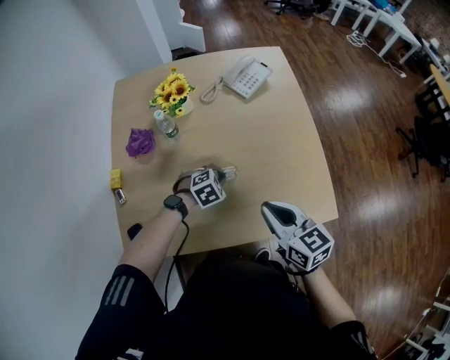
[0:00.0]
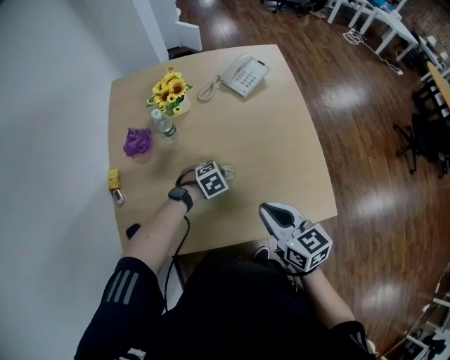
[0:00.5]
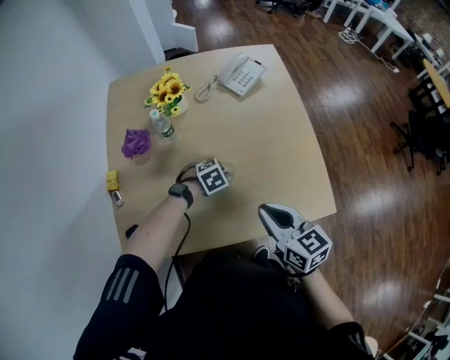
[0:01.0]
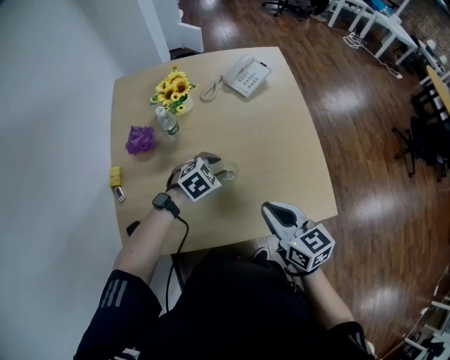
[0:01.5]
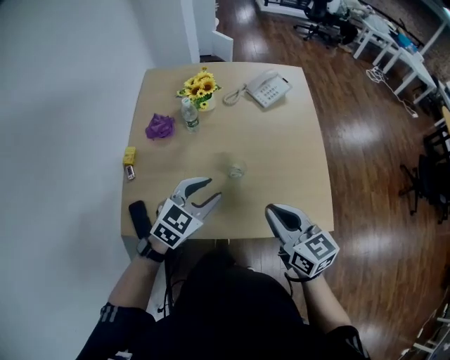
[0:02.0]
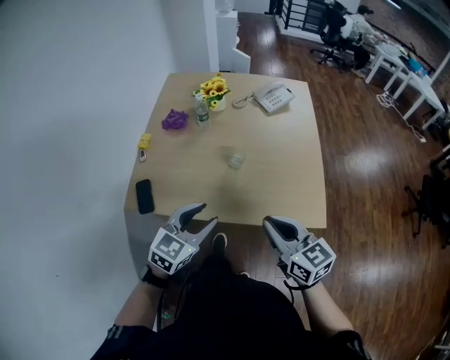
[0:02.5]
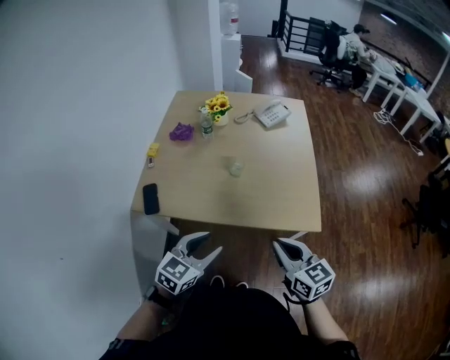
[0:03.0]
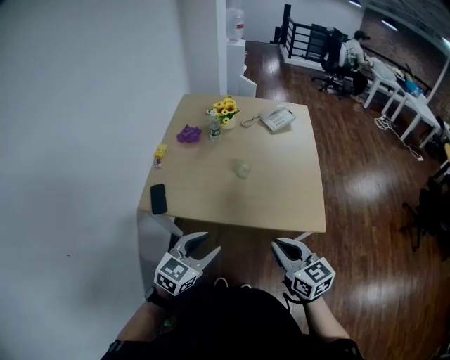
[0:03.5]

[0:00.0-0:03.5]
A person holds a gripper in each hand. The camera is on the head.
0.0 to 2.0 s: The right gripper ends up roughly 5 cm from where it was. The left gripper goes some 25 cm upward and backward, angles its fingers upward, by some 30 degrees, and opens its fingers.
2.0 to 3.5 s: The two grippers go some 30 cm backward.

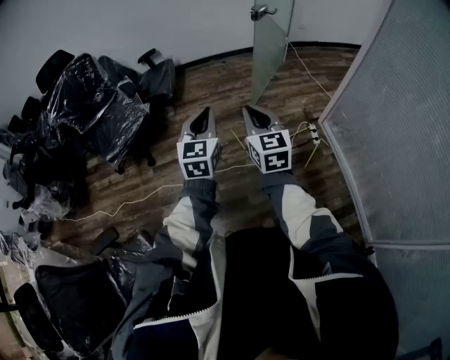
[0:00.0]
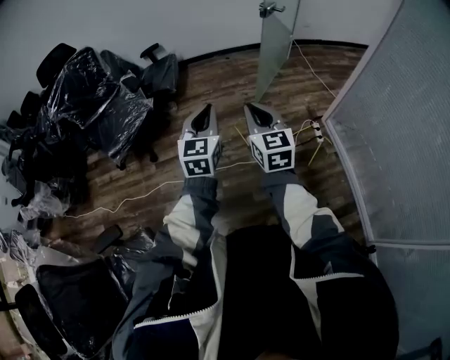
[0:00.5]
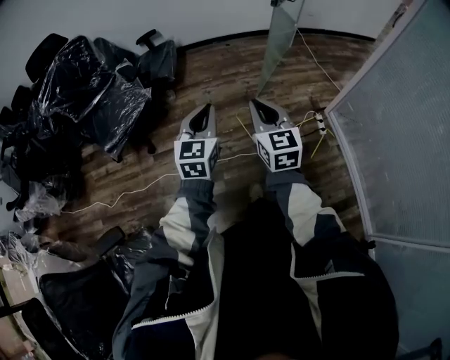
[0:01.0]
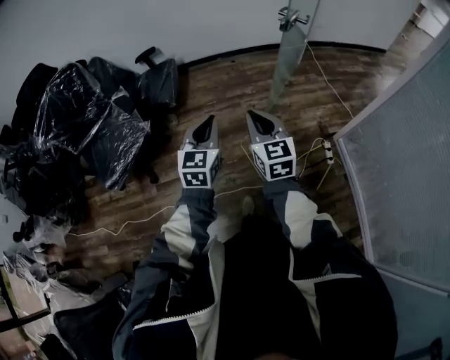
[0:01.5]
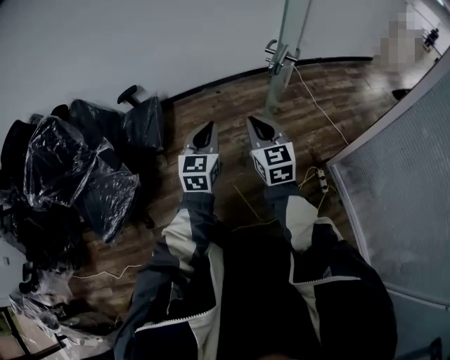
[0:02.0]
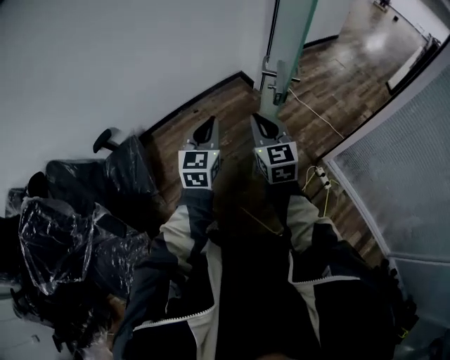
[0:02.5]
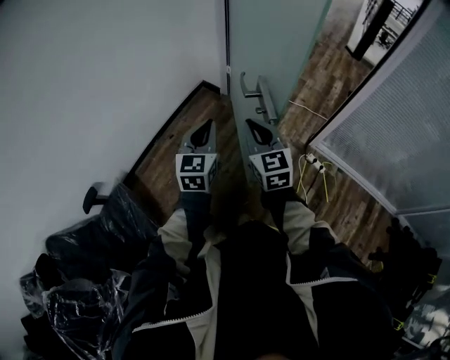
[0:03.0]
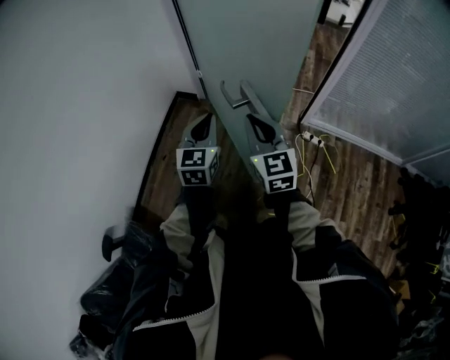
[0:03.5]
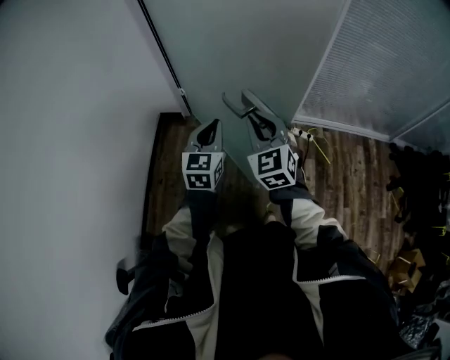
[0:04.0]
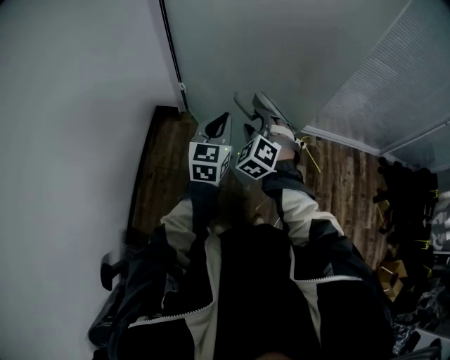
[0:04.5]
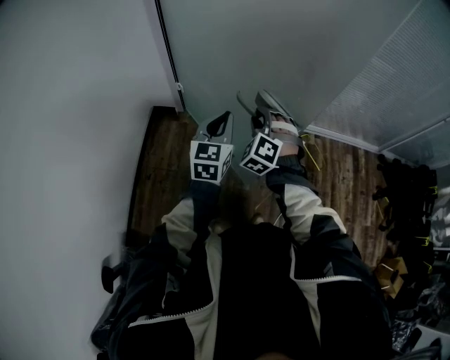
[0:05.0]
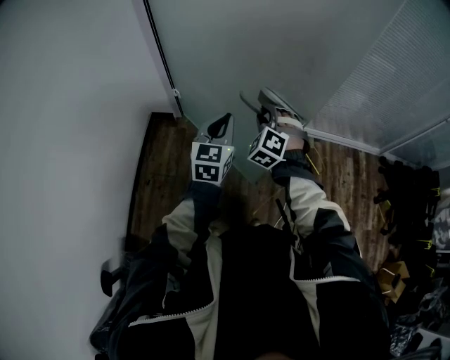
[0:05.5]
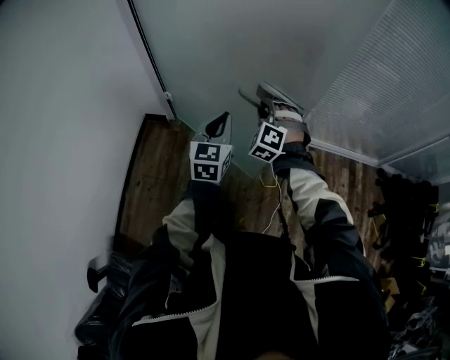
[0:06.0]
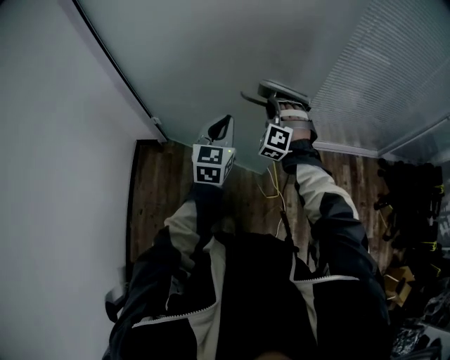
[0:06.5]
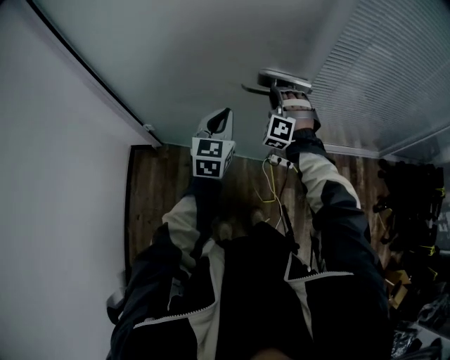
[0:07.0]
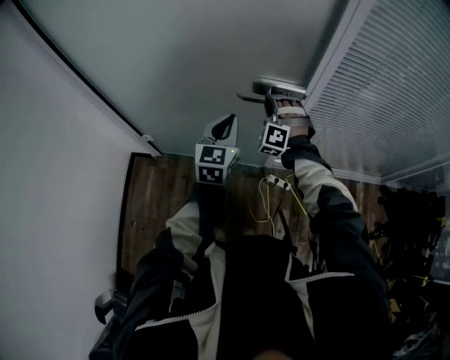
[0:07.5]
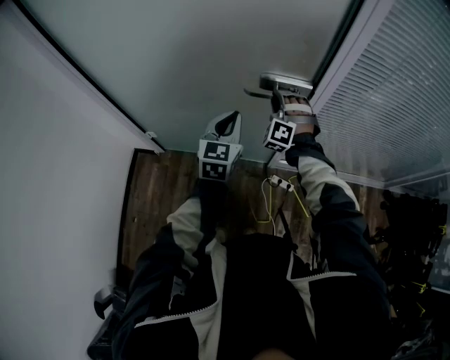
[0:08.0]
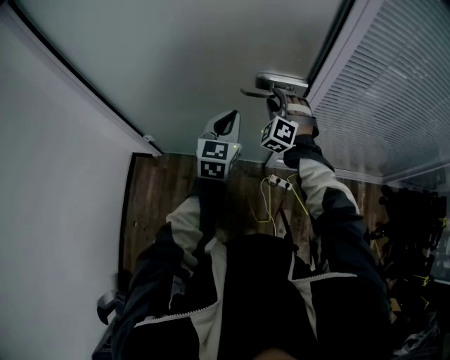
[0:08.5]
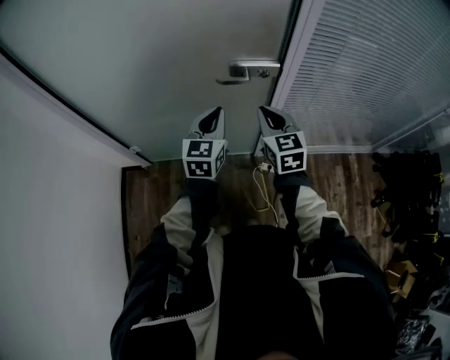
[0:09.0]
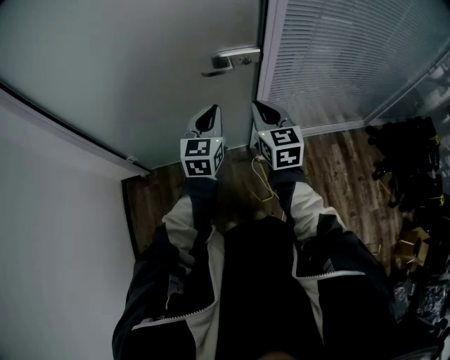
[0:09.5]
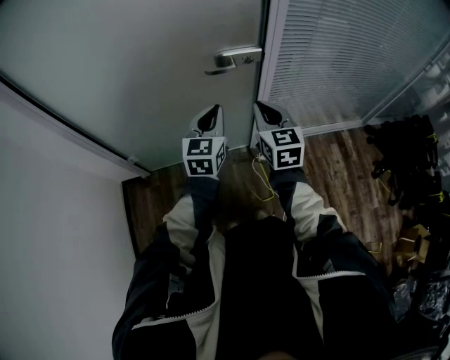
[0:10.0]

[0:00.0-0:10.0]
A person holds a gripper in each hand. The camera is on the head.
0.0 to 2.0 s: The pair of grippers is taken forward, approximately 50 cm.
2.0 to 4.0 s: The left gripper moves some 40 cm, and changes its angle by roughly 70 degrees. Meanwhile the right gripper ends up roughly 35 cm from where it was, and rotates roughly 70 degrees.
4.0 to 6.0 s: The grippers both shift forward and to the right by some 20 cm. The right gripper rolls counterclockwise, seen from behind, by about 40 degrees, and opens, then closes once more.
6.0 to 8.0 s: The two grippers go approximately 35 cm forward.
8.0 to 10.0 s: The right gripper heads backward and upward, covering some 25 cm, twists about 80 degrees clockwise, seen from behind, and closes, while the left gripper shifts about 10 cm backward.

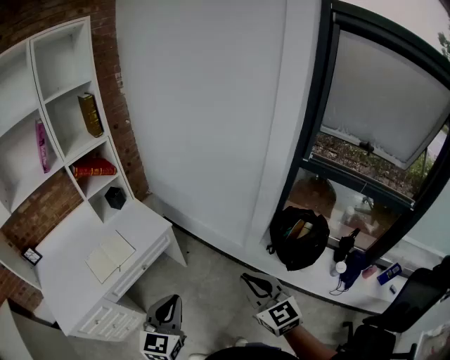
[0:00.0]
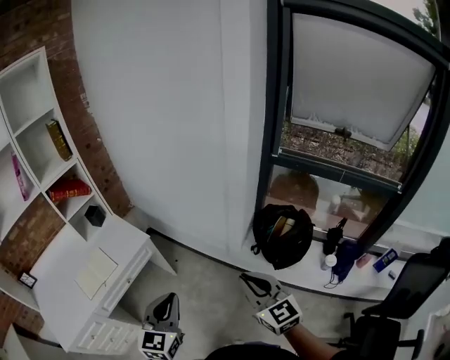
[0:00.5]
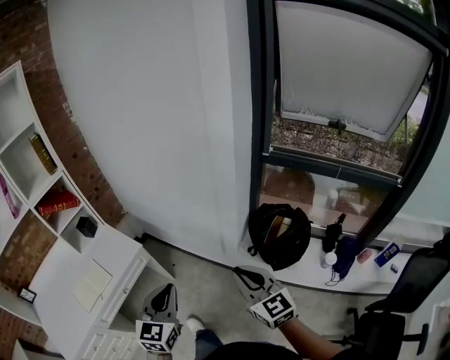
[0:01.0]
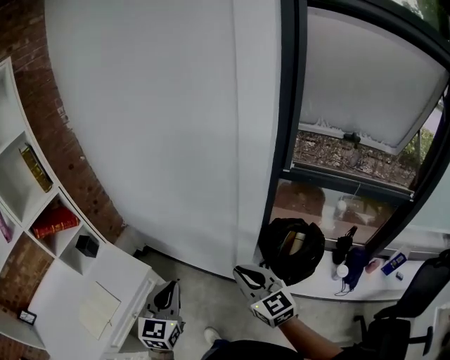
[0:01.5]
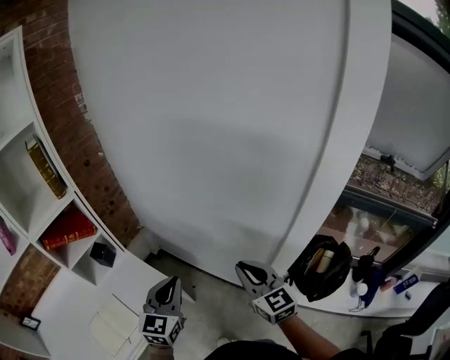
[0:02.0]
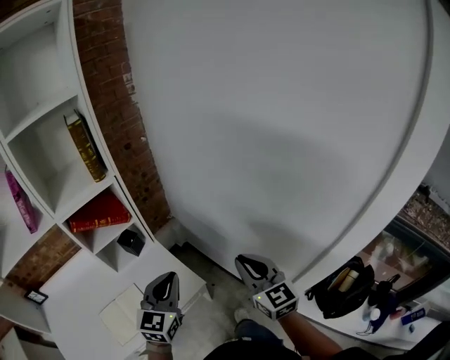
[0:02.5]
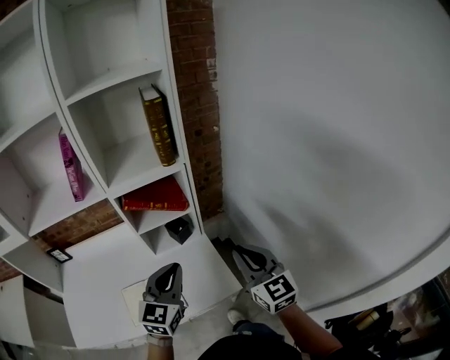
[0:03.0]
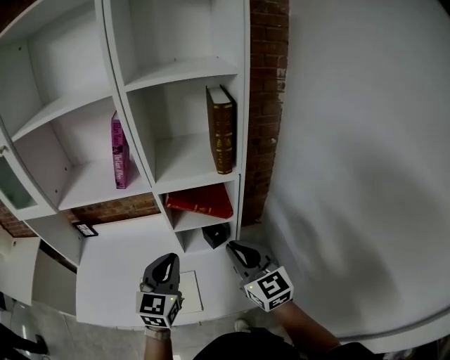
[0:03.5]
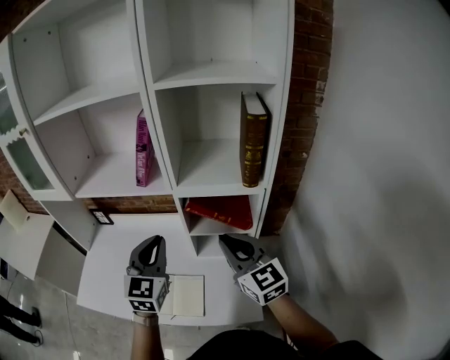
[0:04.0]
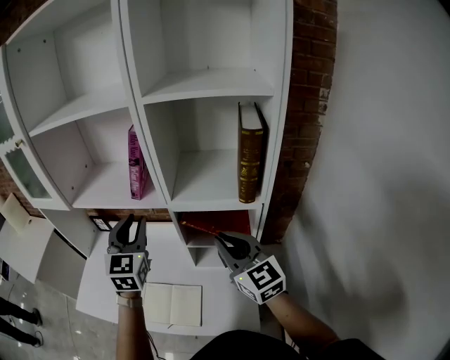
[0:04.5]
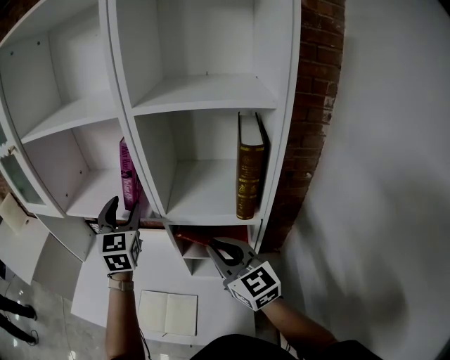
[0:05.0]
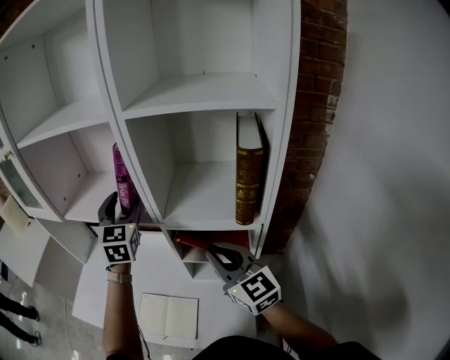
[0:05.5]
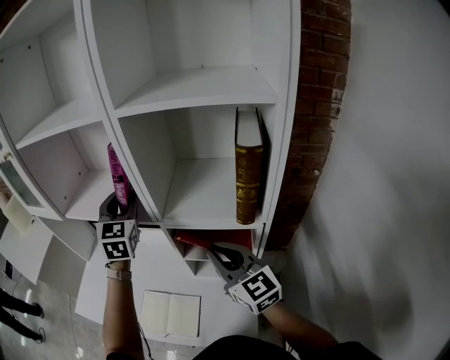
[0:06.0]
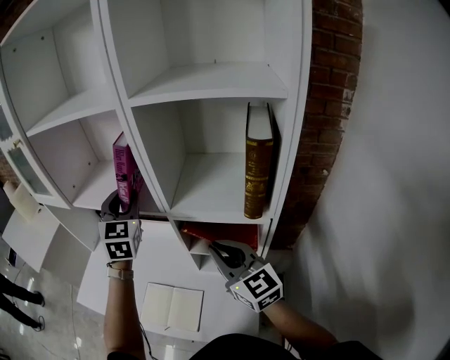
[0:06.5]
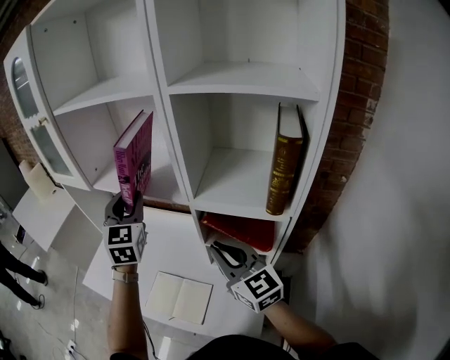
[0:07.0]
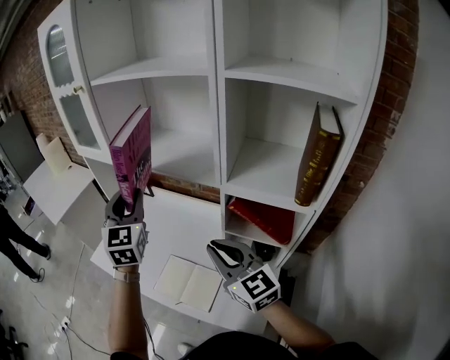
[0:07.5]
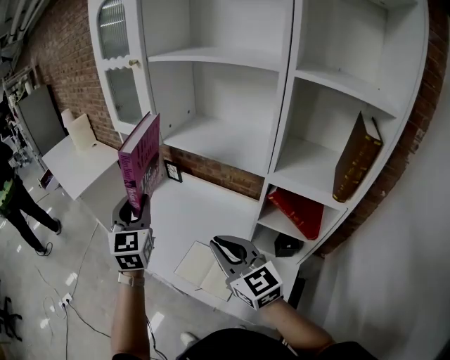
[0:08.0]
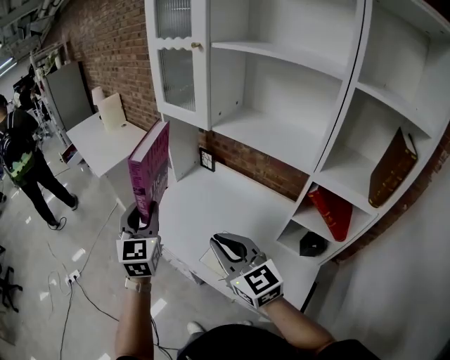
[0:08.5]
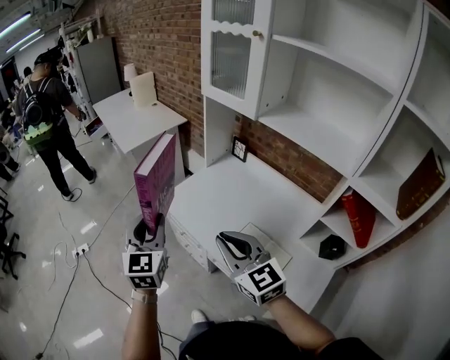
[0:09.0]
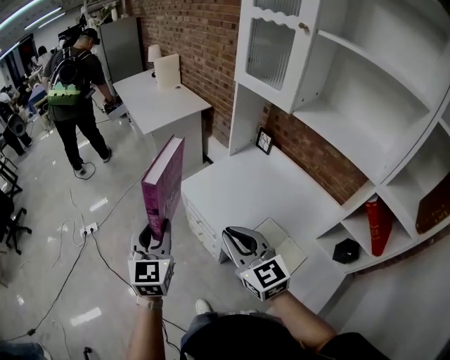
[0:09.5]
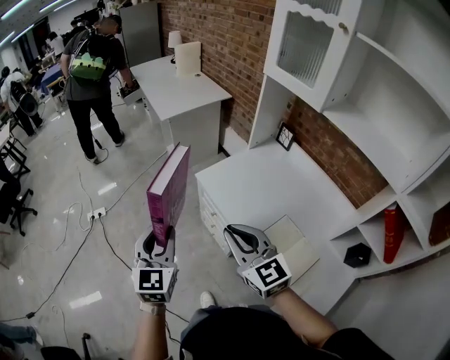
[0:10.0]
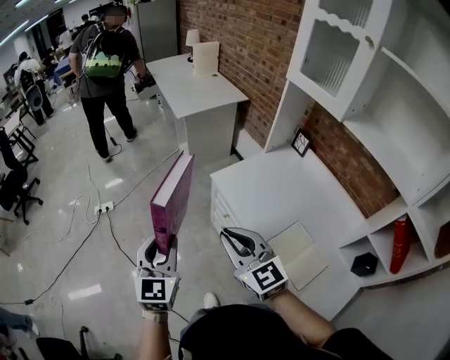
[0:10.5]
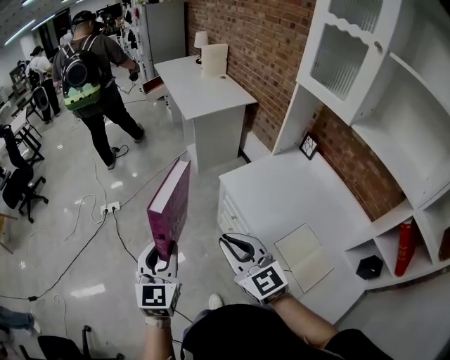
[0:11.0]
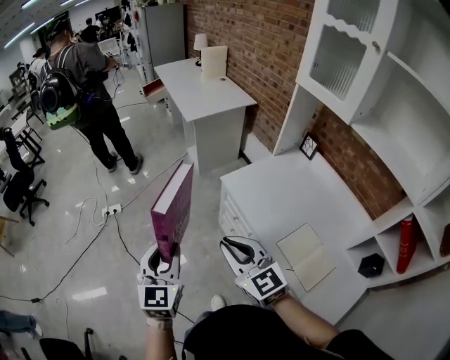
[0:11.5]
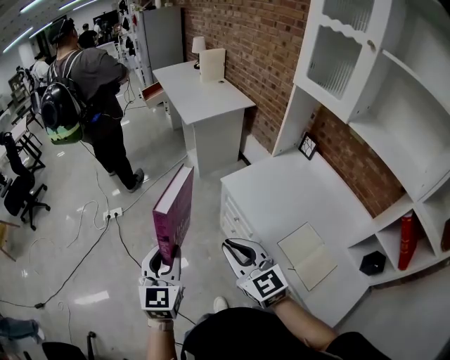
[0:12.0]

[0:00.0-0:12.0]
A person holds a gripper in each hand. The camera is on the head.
0.0 to 2.0 s: The grippers both shift forward by approximately 40 cm.
2.0 to 4.0 s: The two grippers travel together, about 50 cm. The left gripper turns by some 70 degrees, while the right gripper changes its angle by approximately 60 degrees.
4.0 to 6.0 s: The left gripper heads forward, covering approximately 20 cm, and opens, while the right gripper heads forward, covering some 10 cm.
6.0 to 8.0 s: The right gripper goes roughly 25 cm to the left, and rotates some 20 degrees, while the left gripper is displaced to the left and backward by about 35 cm, and changes its angle by roughly 20 degrees.
8.0 to 10.0 s: The right gripper moves to the left, about 35 cm, and rotates roughly 30 degrees. Meanwhile the left gripper goes about 40 cm to the left and downward, and changes its angle by about 20 degrees.
10.0 to 12.0 s: The grippers both shift to the left by about 10 cm.

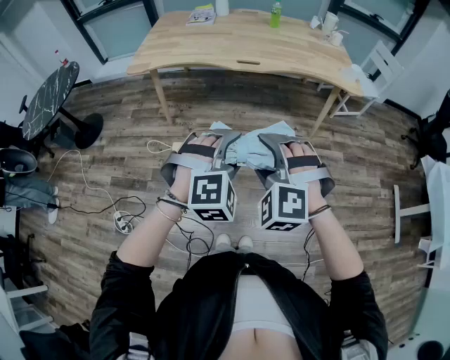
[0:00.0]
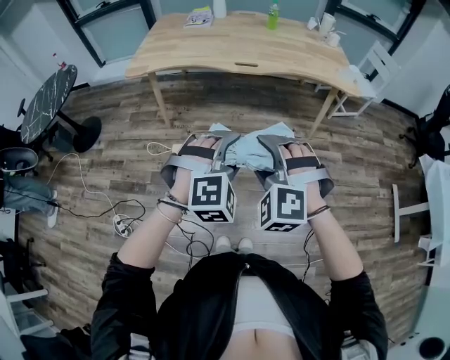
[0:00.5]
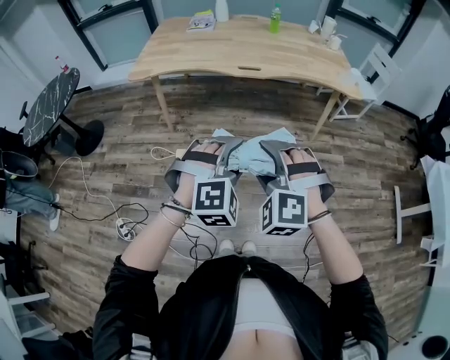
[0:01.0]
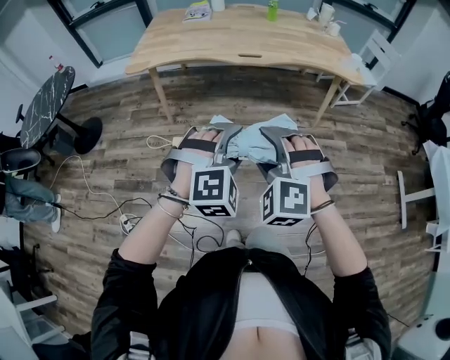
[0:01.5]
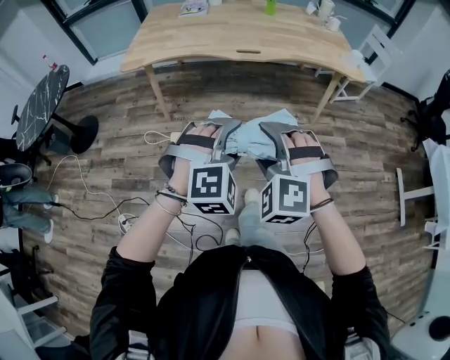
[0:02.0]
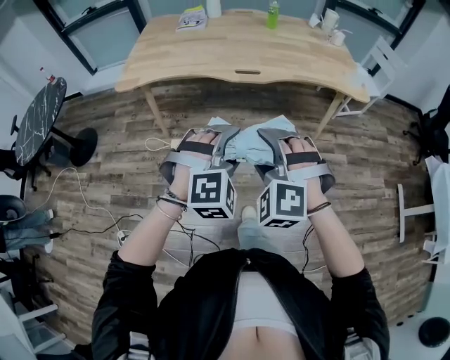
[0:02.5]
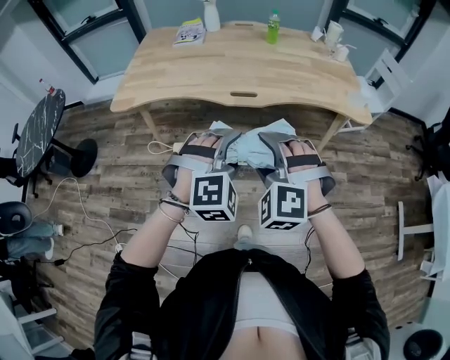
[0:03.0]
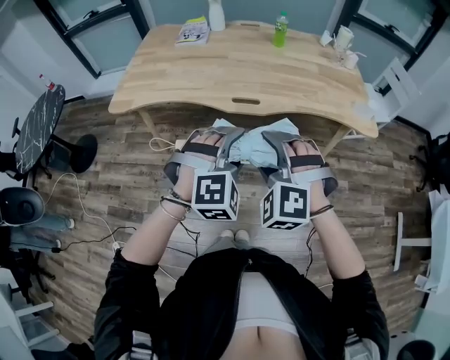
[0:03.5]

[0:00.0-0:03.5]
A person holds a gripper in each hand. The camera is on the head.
0.0 to 2.0 s: The grippers make only small movements.
2.0 to 3.5 s: The two grippers go some 25 cm forward.
